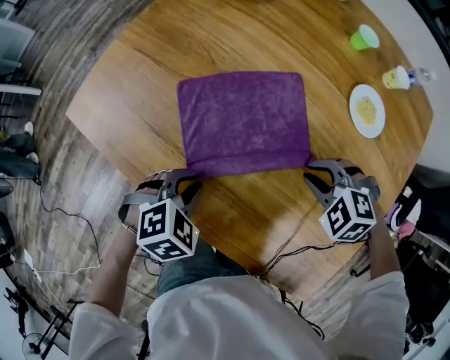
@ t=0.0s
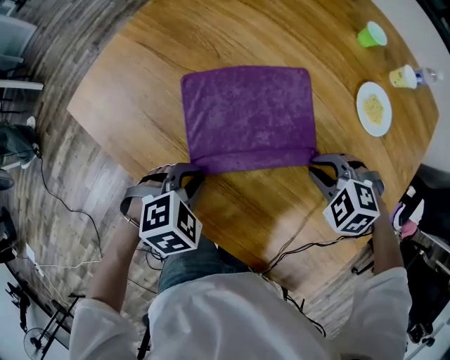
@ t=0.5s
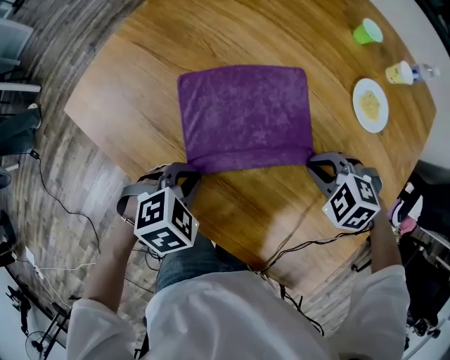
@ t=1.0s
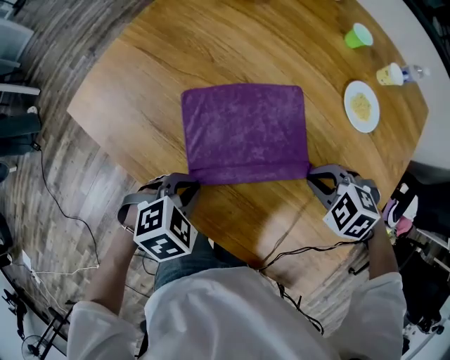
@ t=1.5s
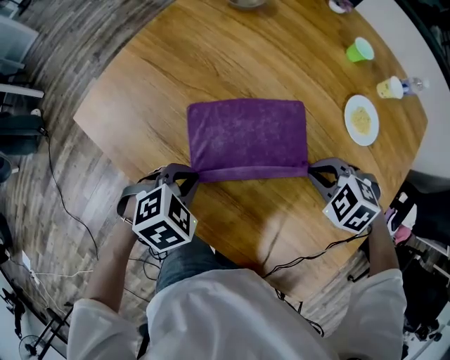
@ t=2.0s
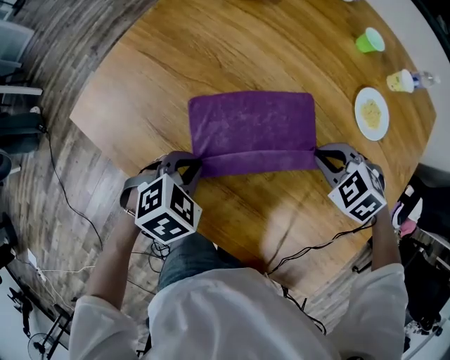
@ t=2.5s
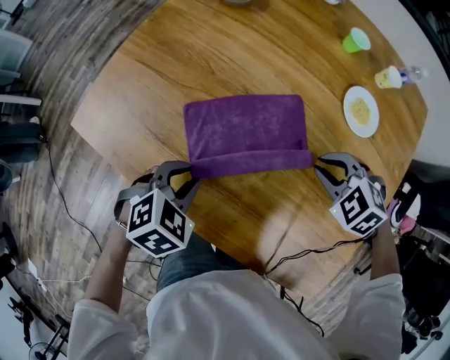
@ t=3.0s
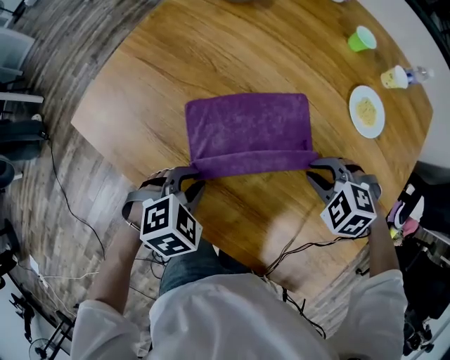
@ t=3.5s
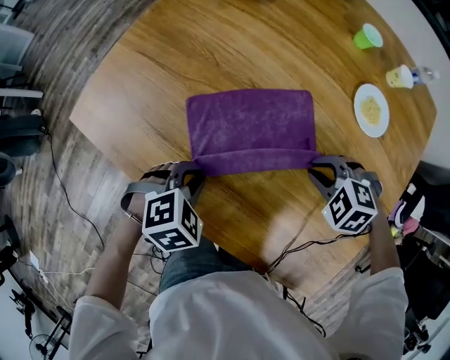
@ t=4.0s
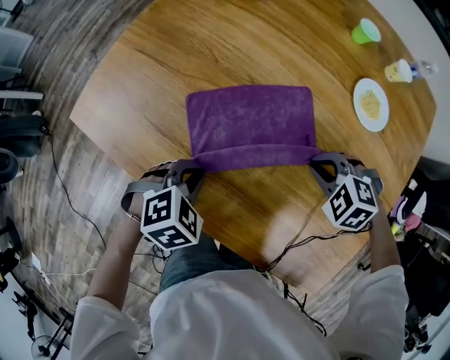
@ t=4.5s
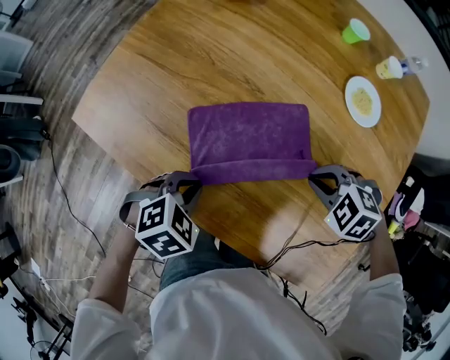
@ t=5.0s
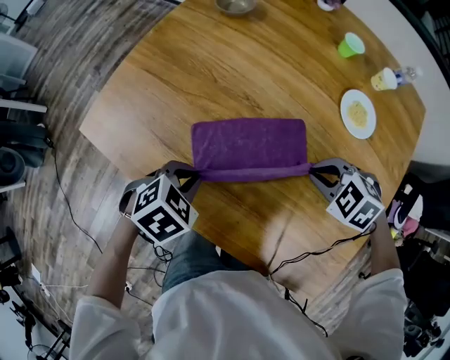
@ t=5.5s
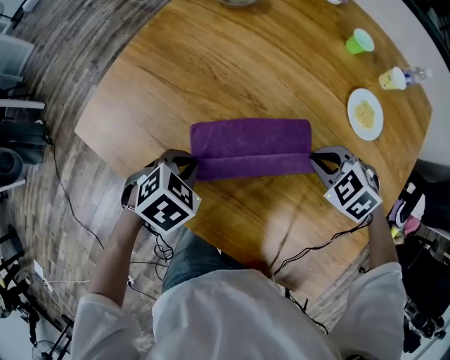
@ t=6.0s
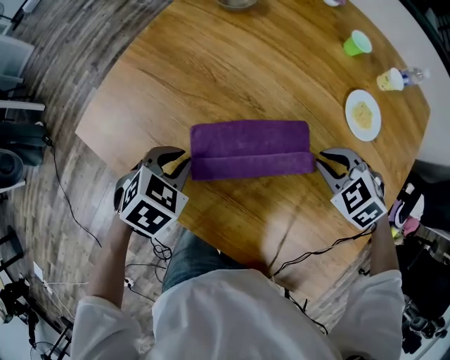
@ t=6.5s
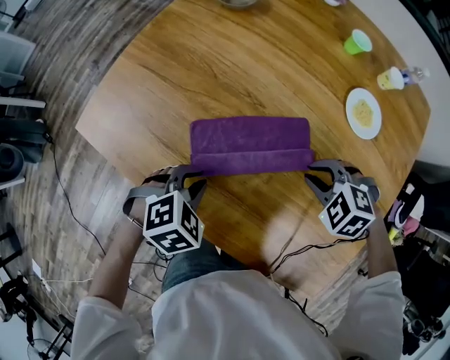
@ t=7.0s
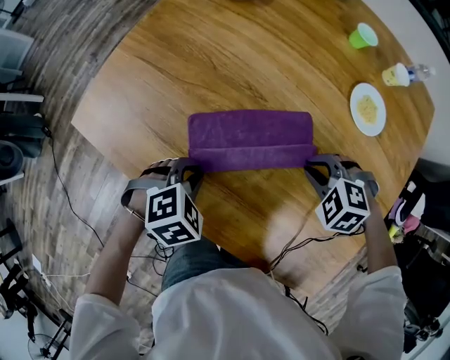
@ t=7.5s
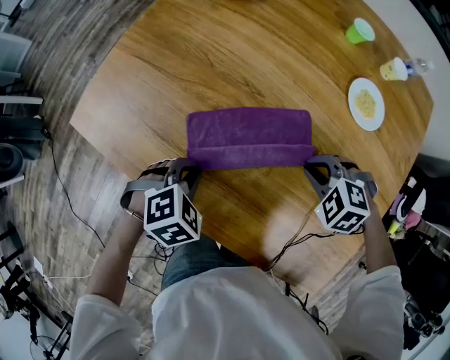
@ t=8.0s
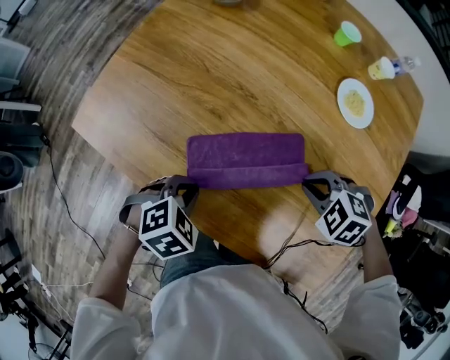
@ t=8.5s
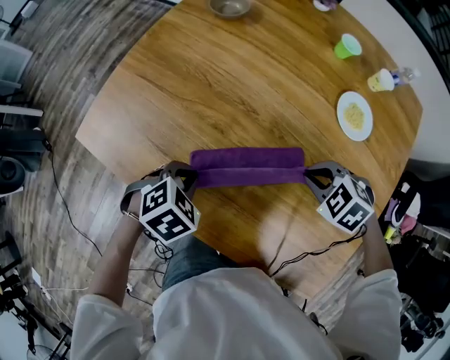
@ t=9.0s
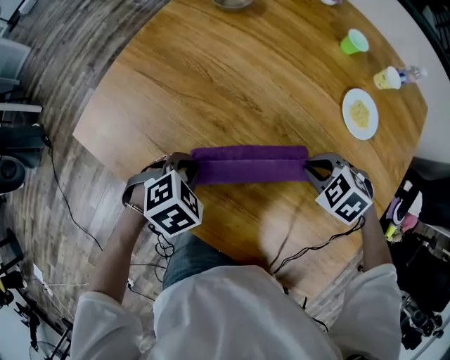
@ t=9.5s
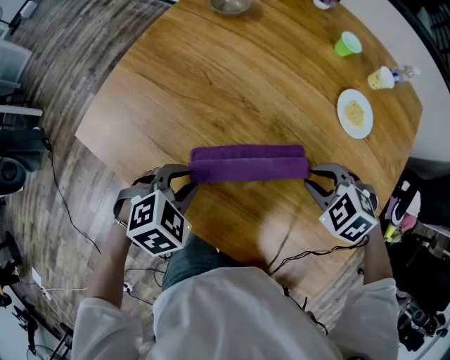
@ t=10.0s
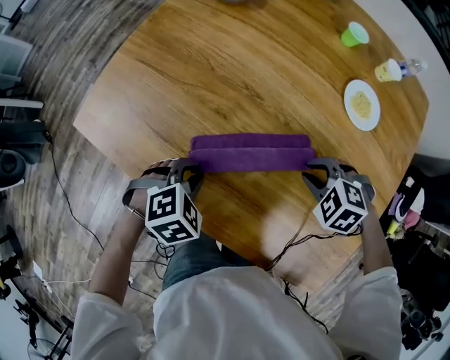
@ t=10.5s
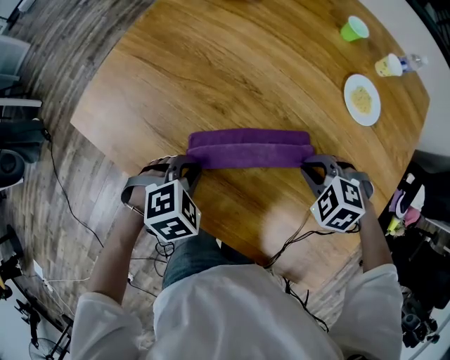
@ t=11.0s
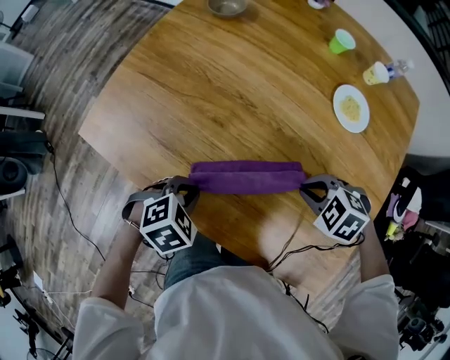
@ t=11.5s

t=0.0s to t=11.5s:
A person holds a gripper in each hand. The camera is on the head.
t=0.0s to t=2.0s: The grippers stay close to where they were, moving slightly.
t=2.0s to t=4.0s: There are only small adjustments of the grippers.
t=4.0s to t=6.0s: The right gripper changes place by some 5 cm. The left gripper shifts by roughly 5 cm.
t=6.0s to t=7.5s: The grippers stay close to where they were, moving slightly.
t=7.5s to t=9.5s: The right gripper travels backward and back again, approximately 5 cm each way.
t=9.5s to t=11.5s: The right gripper shifts by roughly 10 cm. The left gripper shifts by roughly 10 cm.

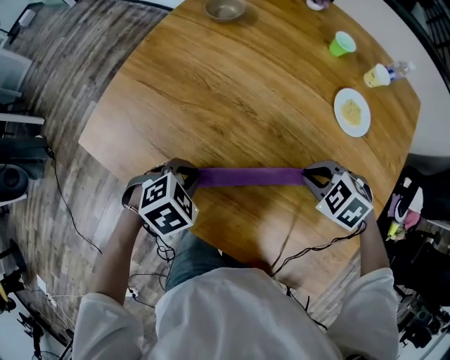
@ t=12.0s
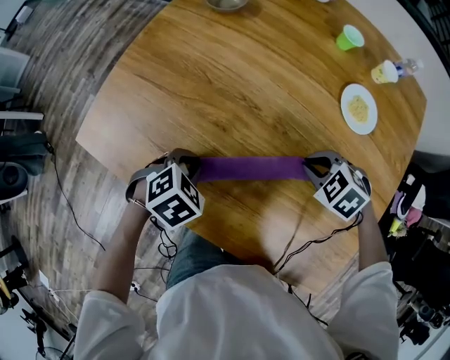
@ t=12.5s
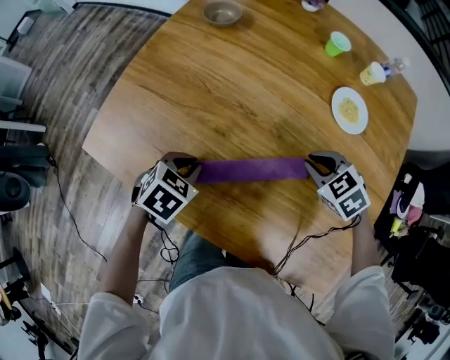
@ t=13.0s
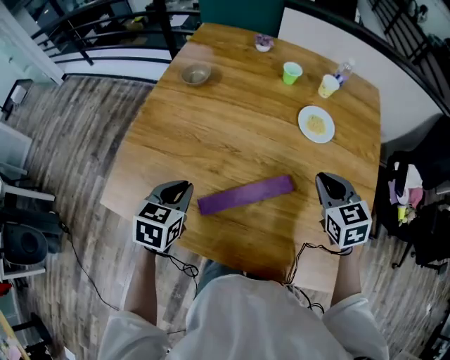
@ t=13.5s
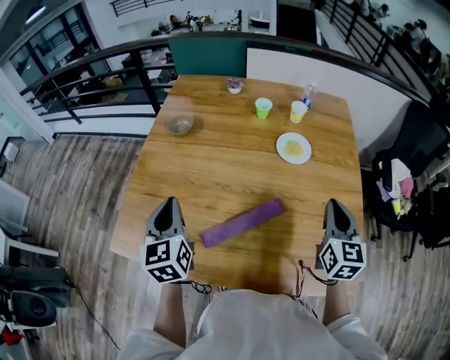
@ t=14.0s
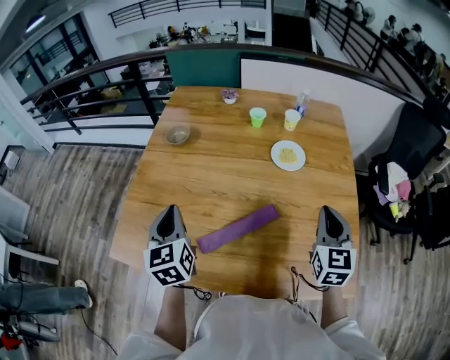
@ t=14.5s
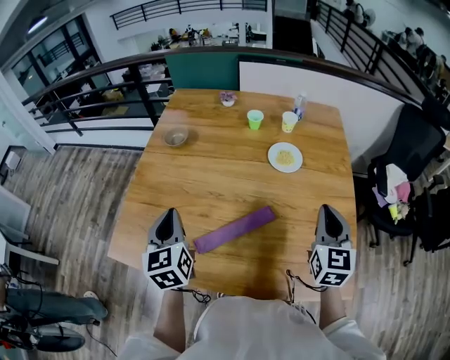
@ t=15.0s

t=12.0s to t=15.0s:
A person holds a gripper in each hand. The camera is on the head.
t=12.0s to t=13.5s: The left gripper heads upward and forward, covering approximately 10 cm, and turns by roughly 40 degrees. Meanwhile the right gripper is displaced upward and to the right by approximately 15 cm, and angles its fingers upward, by approximately 40 degrees.
t=13.5s to t=15.0s: The right gripper is displaced upward, backward and to the right by some 15 cm, and rotates some 40 degrees; the left gripper is displaced upward by some 10 cm, and changes its angle by roughly 30 degrees.

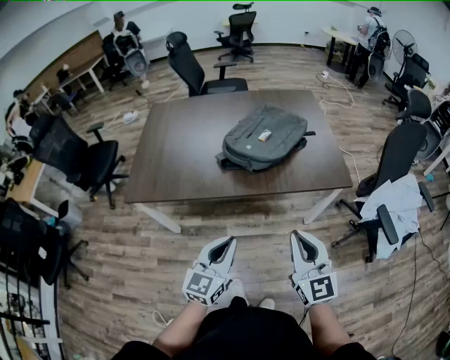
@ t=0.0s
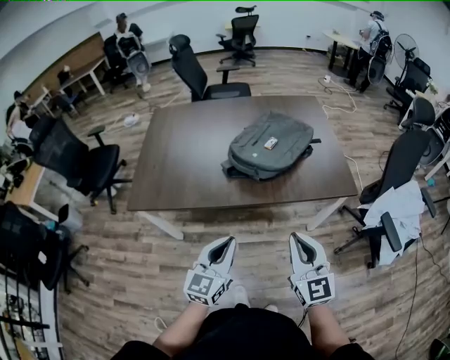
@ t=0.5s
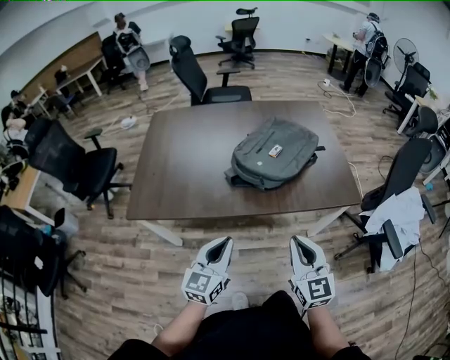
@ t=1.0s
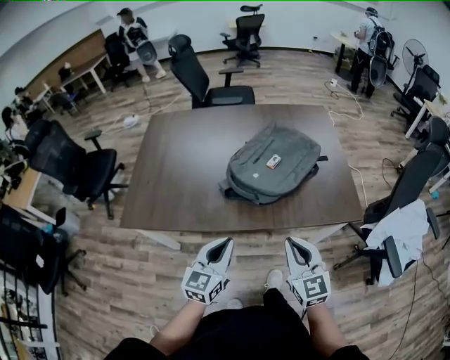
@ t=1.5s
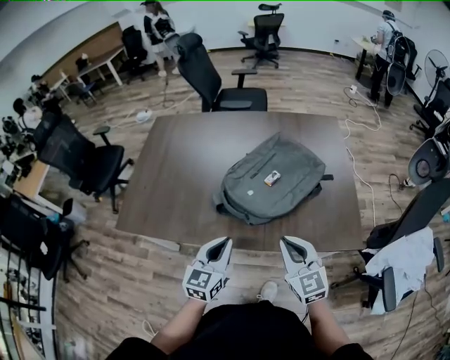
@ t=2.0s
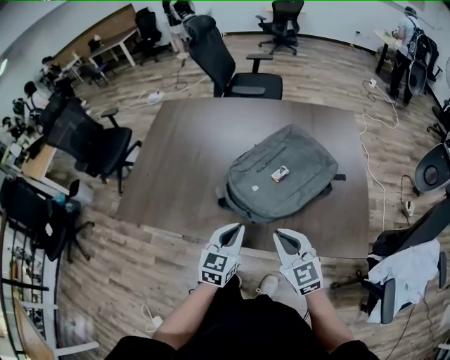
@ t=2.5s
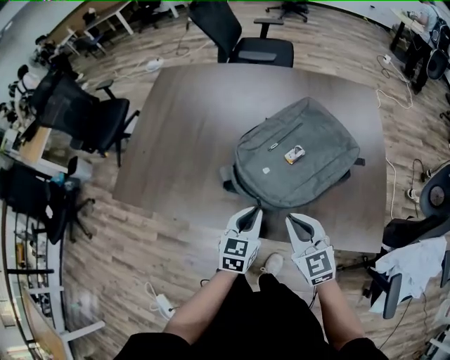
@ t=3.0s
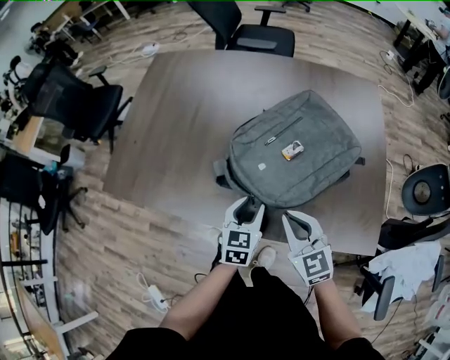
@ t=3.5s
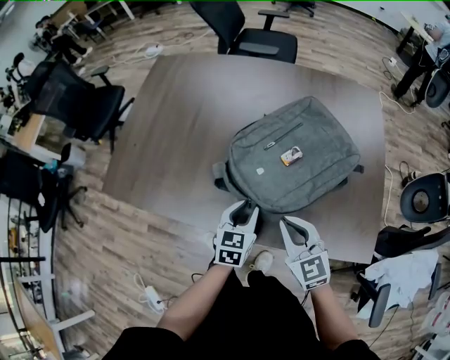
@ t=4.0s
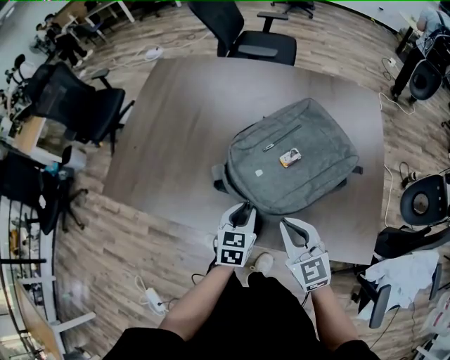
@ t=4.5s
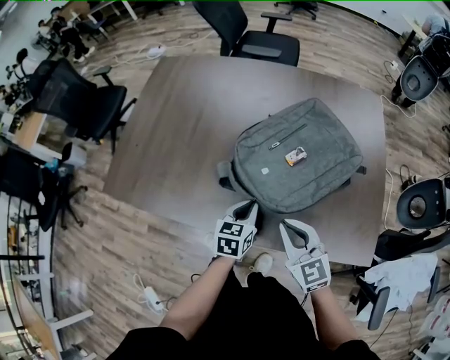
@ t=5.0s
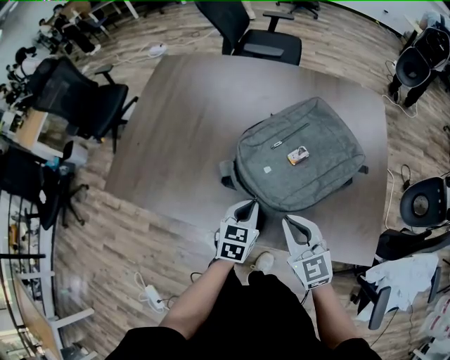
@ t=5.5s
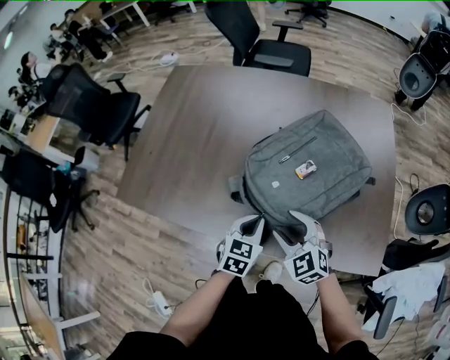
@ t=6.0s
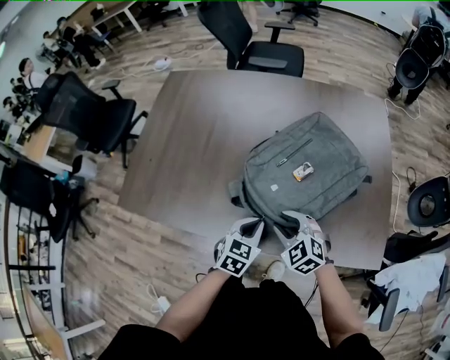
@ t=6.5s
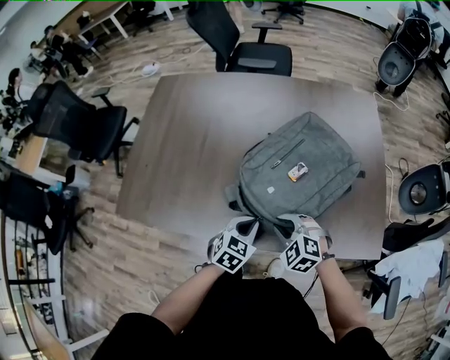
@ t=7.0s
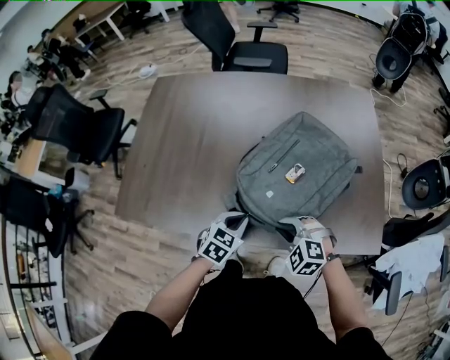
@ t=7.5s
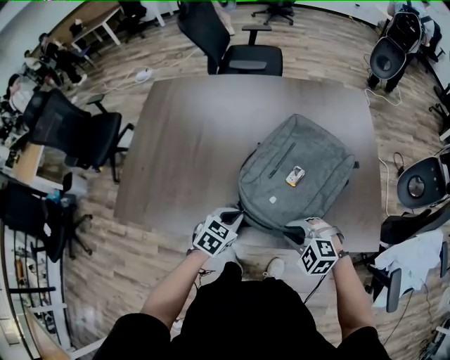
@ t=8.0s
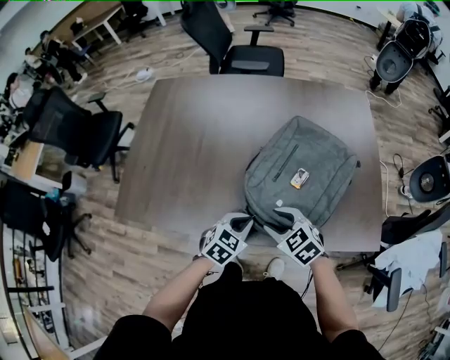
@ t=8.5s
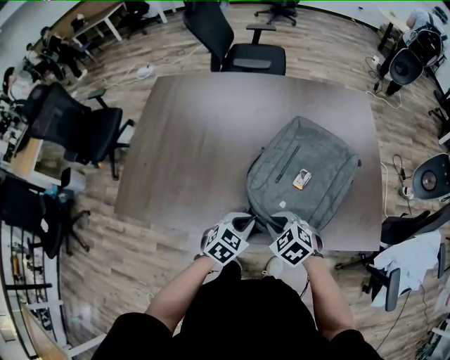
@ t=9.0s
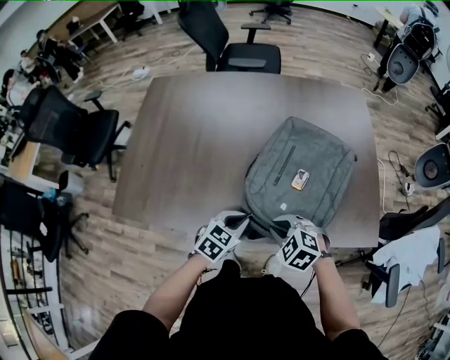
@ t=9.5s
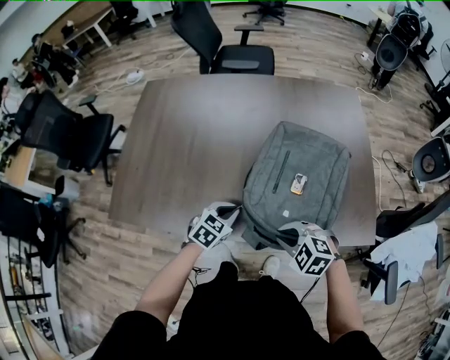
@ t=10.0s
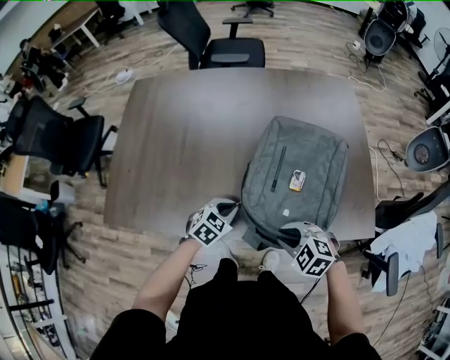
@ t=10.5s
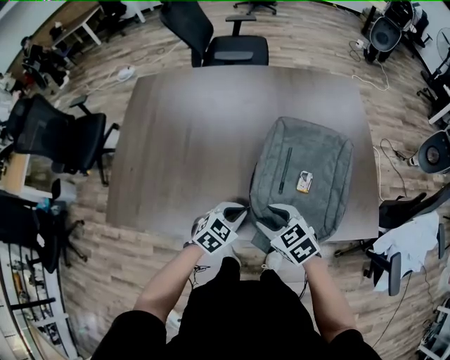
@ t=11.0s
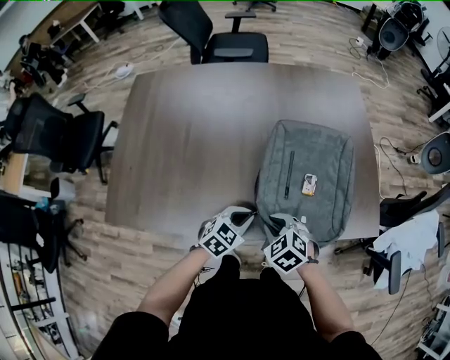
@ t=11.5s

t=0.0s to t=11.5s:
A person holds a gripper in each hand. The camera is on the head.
t=0.0s to t=2.0s: The two grippers go about 25 cm forward. The right gripper changes its angle by some 20 degrees.
t=2.0s to t=4.0s: The right gripper heads forward and downward, covering some 10 cm; the left gripper travels downward, forward and to the right by approximately 15 cm, swivels roughly 20 degrees, and opens up.
t=4.0s to t=6.0s: The right gripper shifts by some 5 cm, turns by roughly 20 degrees, and opens up. The left gripper closes up.
t=6.0s to t=7.5s: The left gripper rotates some 20 degrees, while the right gripper changes its angle by roughly 20 degrees, and closes.
t=7.5s to t=9.5s: The right gripper opens, then closes again.
t=9.5s to t=11.5s: The right gripper opens, then closes again.
